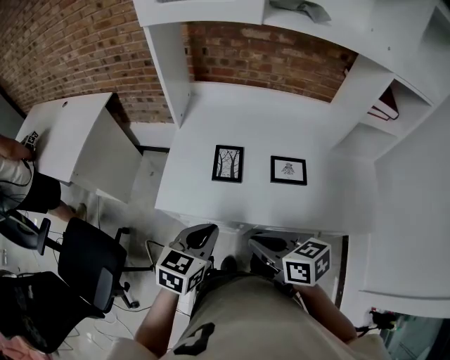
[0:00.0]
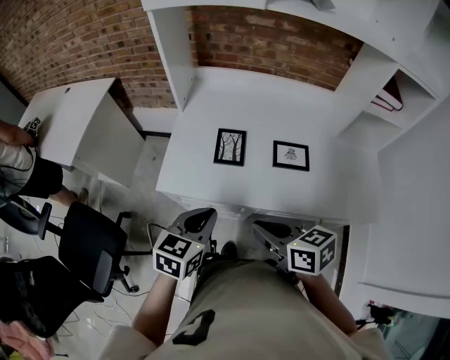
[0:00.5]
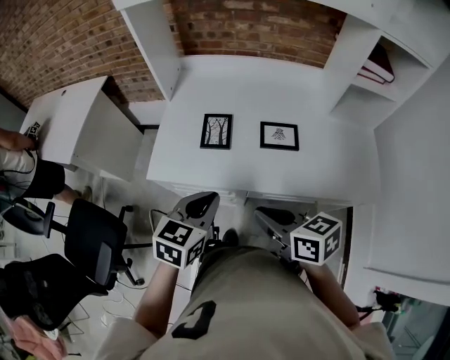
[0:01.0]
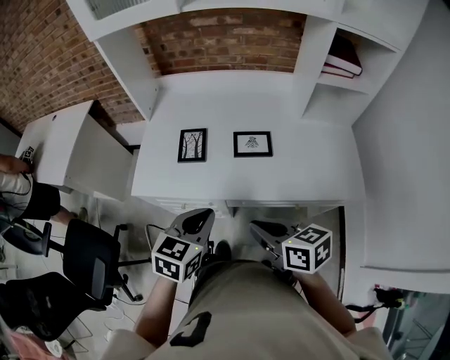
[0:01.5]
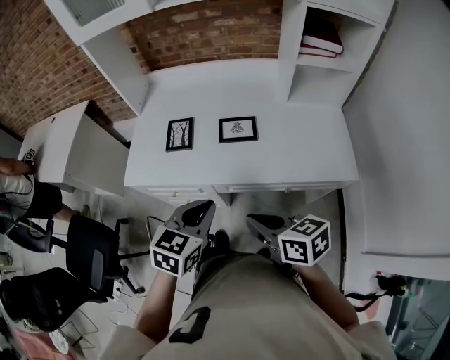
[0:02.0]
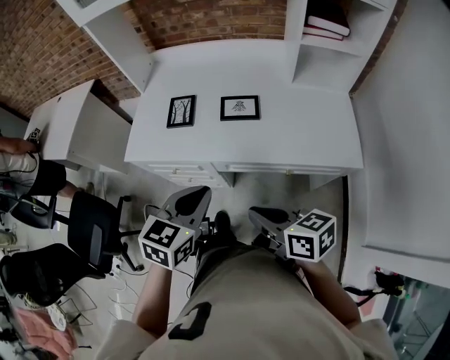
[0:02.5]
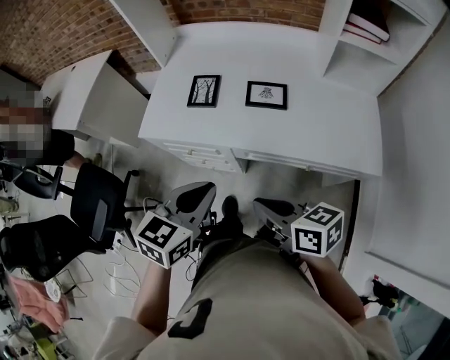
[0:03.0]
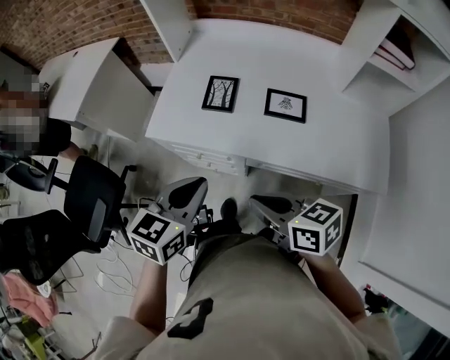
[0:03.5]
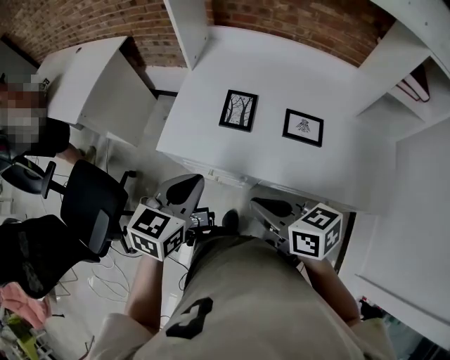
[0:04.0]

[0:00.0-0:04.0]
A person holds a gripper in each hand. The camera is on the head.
0:00.0 to 0:02.0: Both grippers travel together to the right and backward, roughly 20 cm.
0:02.0 to 0:04.0: The grippers both shift to the left and forward by approximately 20 cm.

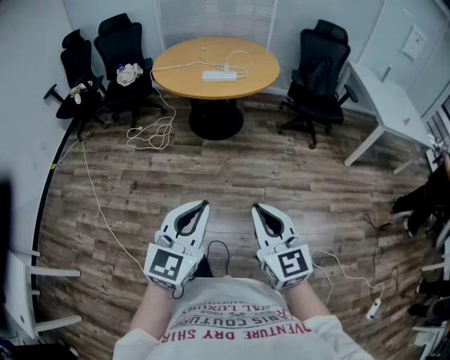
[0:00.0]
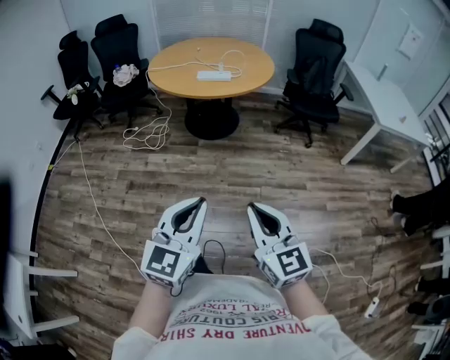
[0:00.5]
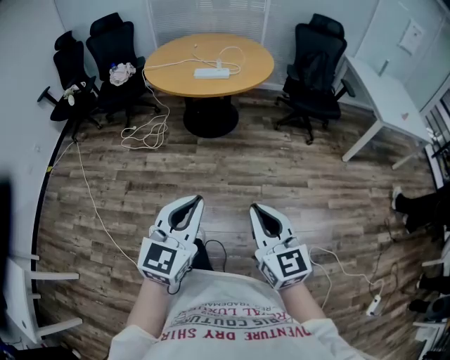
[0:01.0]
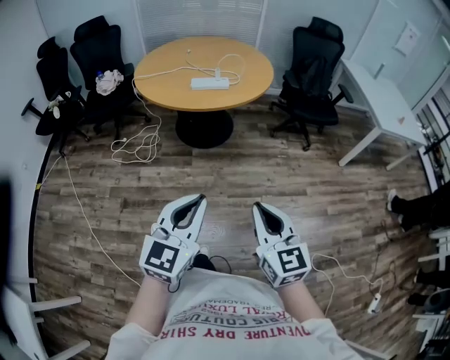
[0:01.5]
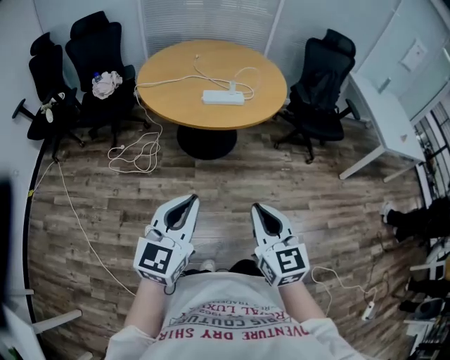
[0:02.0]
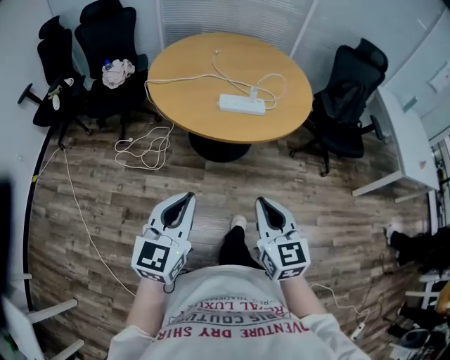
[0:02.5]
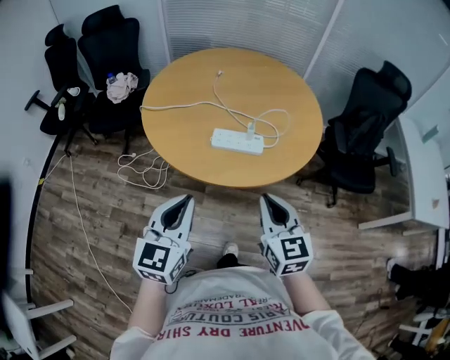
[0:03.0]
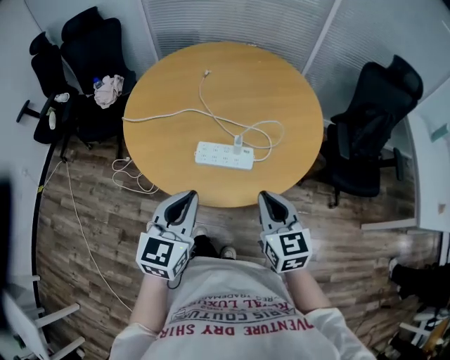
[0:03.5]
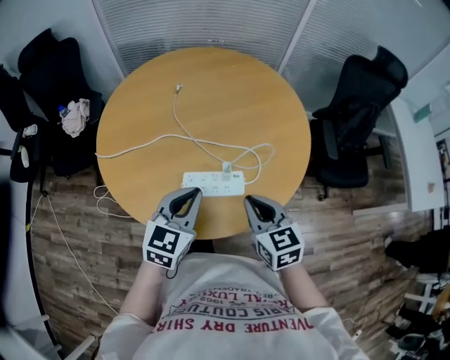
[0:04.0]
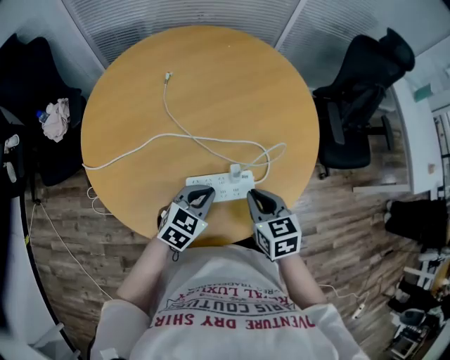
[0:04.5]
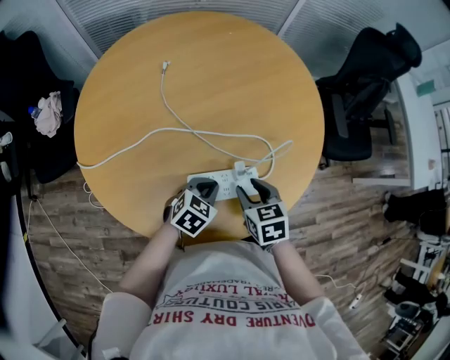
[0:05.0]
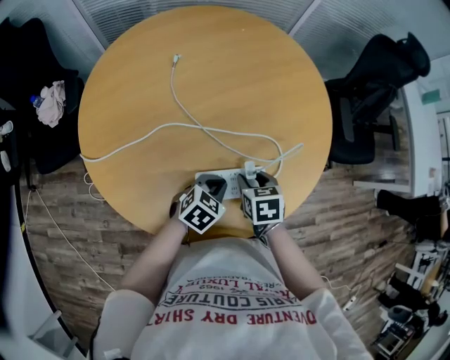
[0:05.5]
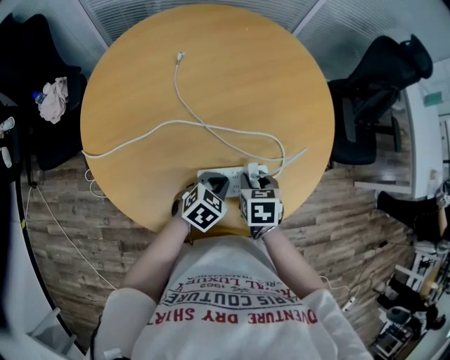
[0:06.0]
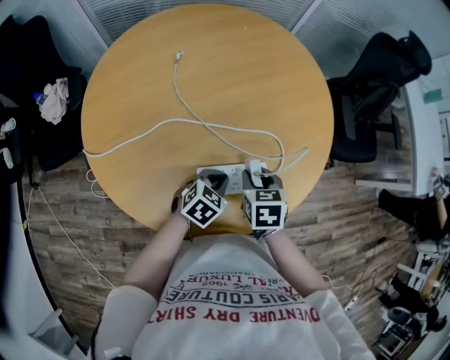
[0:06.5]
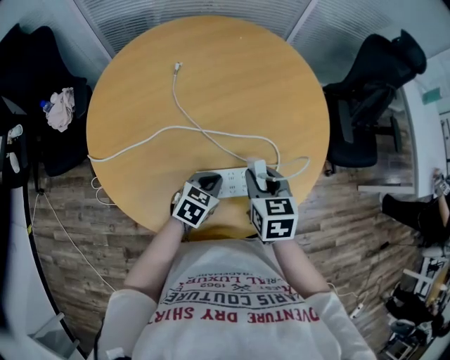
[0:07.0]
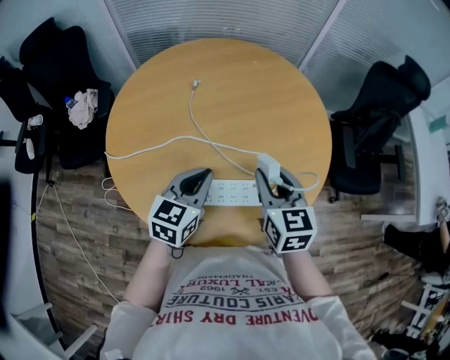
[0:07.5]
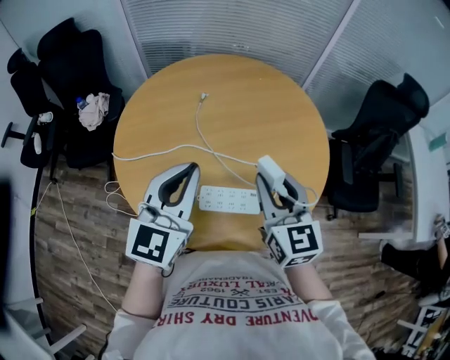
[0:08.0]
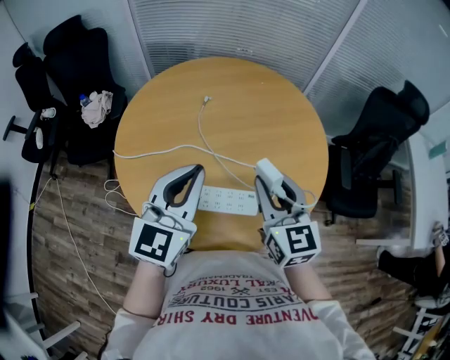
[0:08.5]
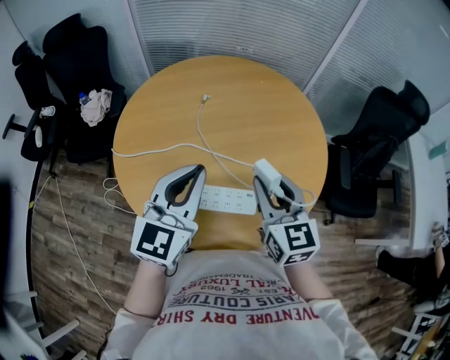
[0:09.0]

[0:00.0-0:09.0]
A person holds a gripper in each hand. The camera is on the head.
0:00.0 to 0:02.0: Both grippers travel together forward and to the left, roughly 30 cm.
0:02.0 to 0:04.5: Both grippers are carried forward, approximately 60 cm. The left gripper moves downward, roughly 25 cm, and angles its fingers downward, by about 30 degrees; the right gripper turns by about 30 degrees.
0:04.5 to 0:07.0: The left gripper shifts some 5 cm downward. The right gripper travels downward and back again, approximately 10 cm each way, and opens.
0:07.0 to 0:09.0: The right gripper travels upward by roughly 15 cm, and turns by approximately 30 degrees. Meanwhile the left gripper heads upward, covering some 35 cm, and tilts its fingers about 40 degrees upward.

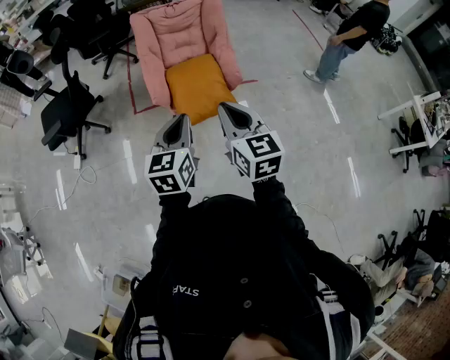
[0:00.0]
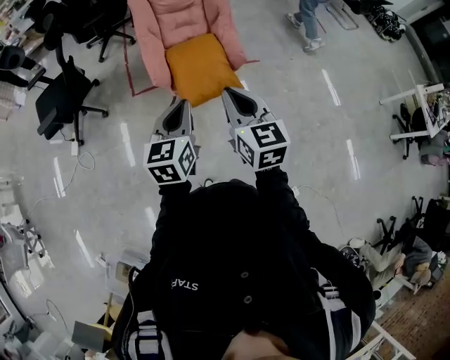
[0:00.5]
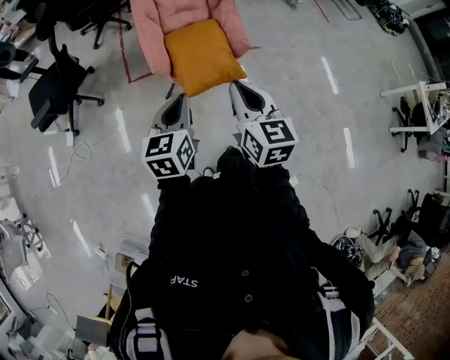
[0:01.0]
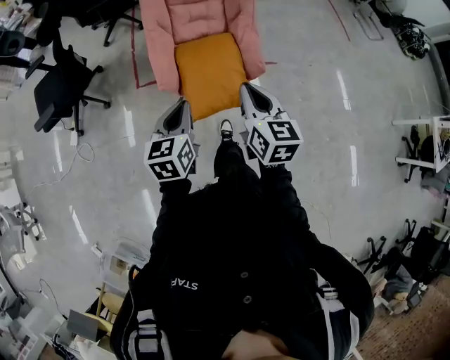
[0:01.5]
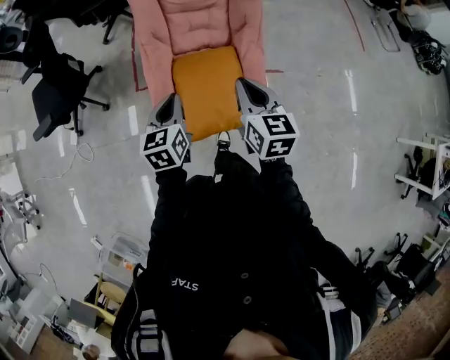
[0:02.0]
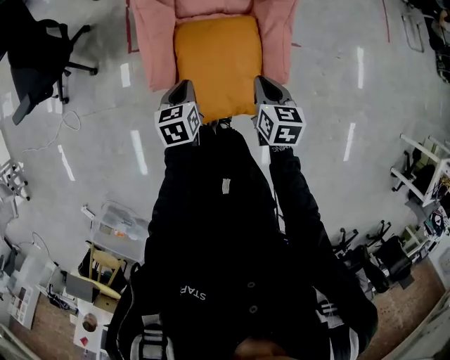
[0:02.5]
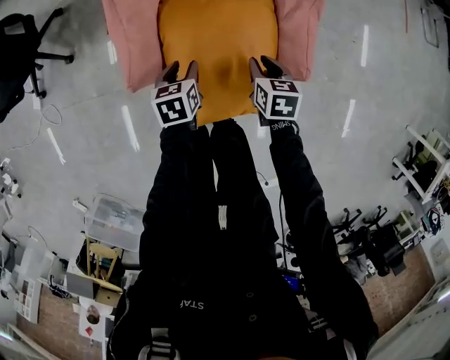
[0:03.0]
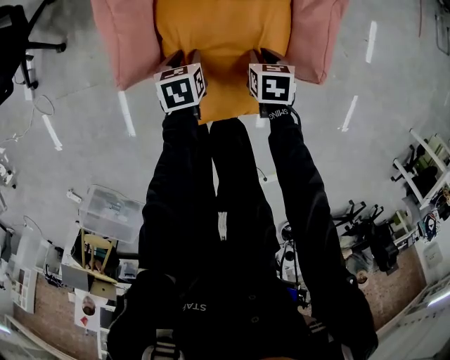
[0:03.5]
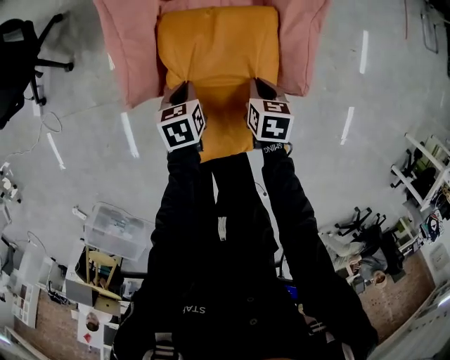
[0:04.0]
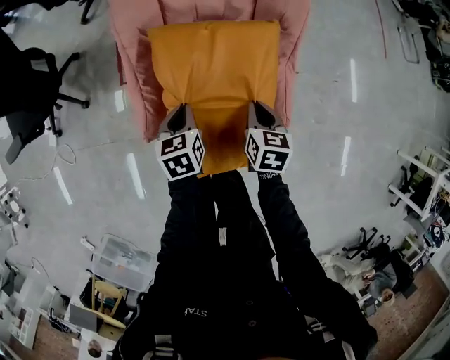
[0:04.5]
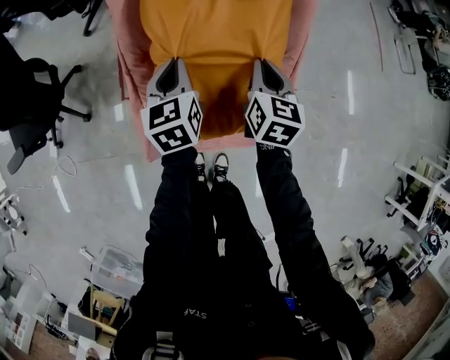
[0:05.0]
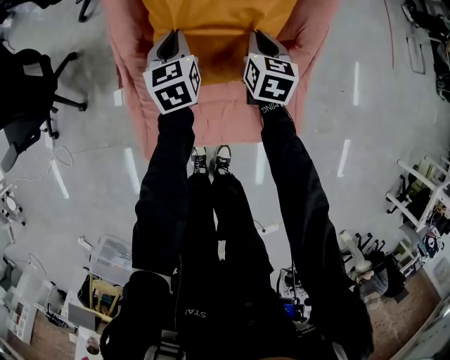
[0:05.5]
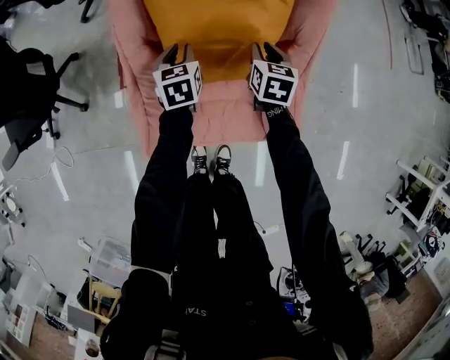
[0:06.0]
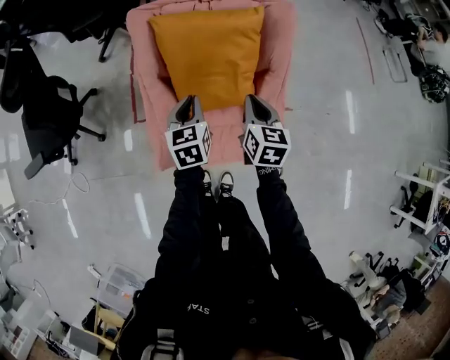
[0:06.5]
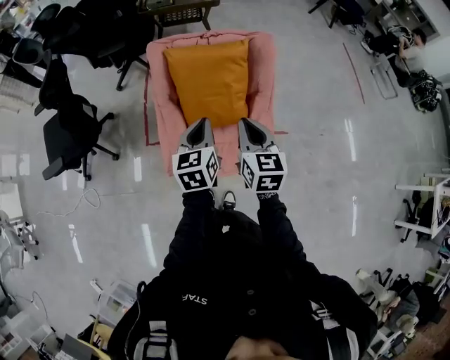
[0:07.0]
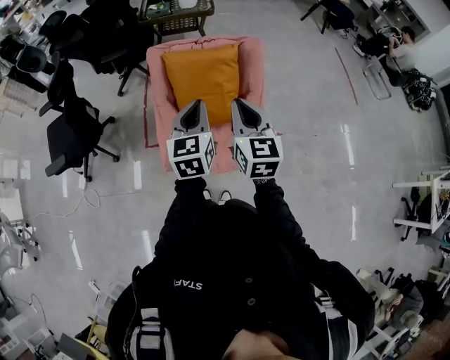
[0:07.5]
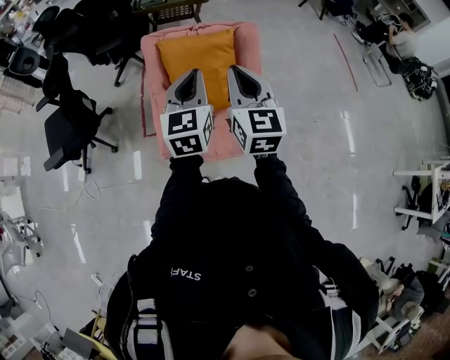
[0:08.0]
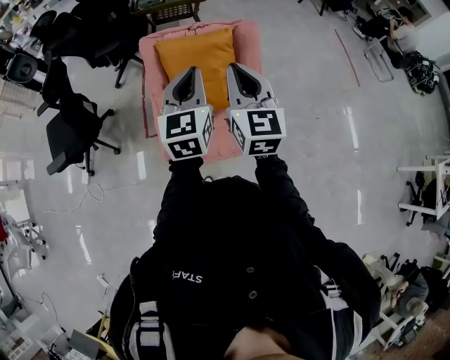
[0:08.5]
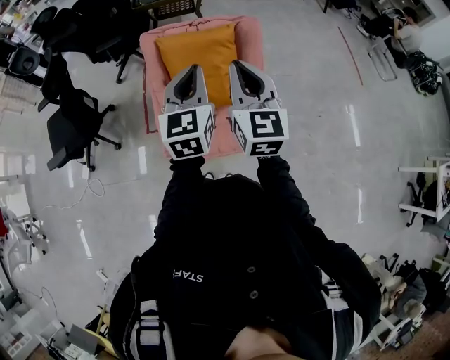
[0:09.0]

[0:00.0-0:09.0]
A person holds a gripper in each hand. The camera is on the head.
0:00.0 to 0:02.0: Both grippers move forward, some 40 cm.
0:02.0 to 0:04.5: The two grippers go roughly 35 cm downward and forward. The left gripper turns by approximately 20 degrees, and opens, then closes again. Meanwhile the right gripper swivels roughly 30 degrees, and opens, then closes again.
0:04.5 to 0:07.0: The left gripper swings up and down, roughly 35 cm each way, with 2 reversals, and turns by some 30 degrees; the right gripper goes up and down, some 35 cm each way, reversing 2 times, rotates roughly 30 degrees, and opens, then closes again.
0:07.0 to 0:09.0: Both grippers move upward, some 15 cm. The right gripper rotates approximately 20 degrees, while the left gripper turns by some 20 degrees.

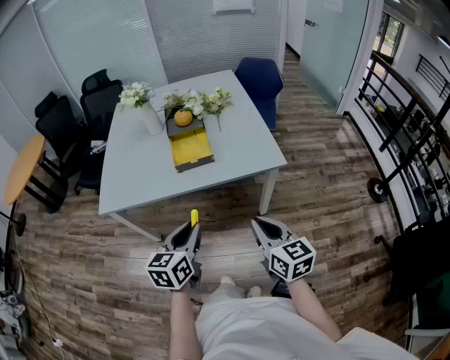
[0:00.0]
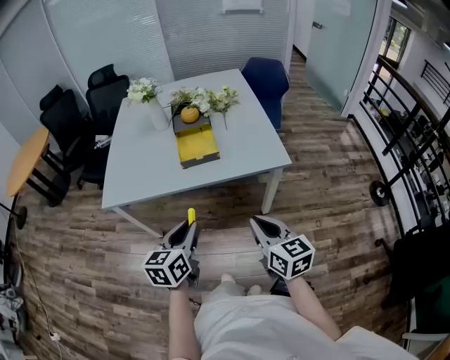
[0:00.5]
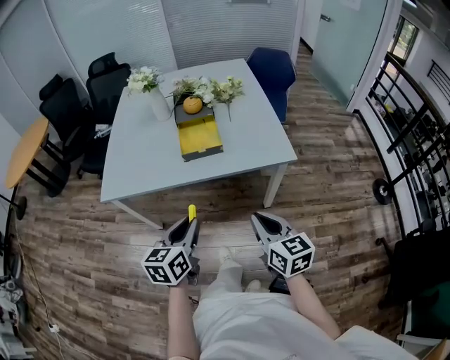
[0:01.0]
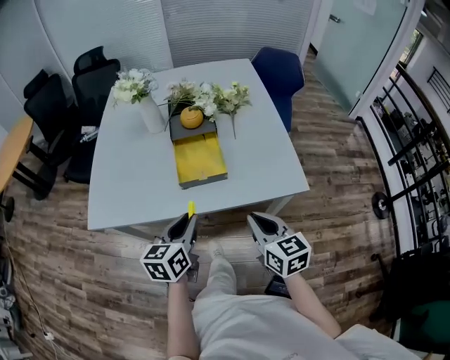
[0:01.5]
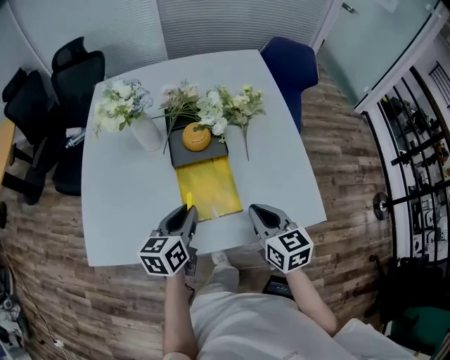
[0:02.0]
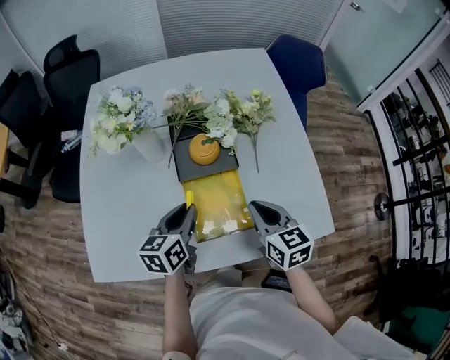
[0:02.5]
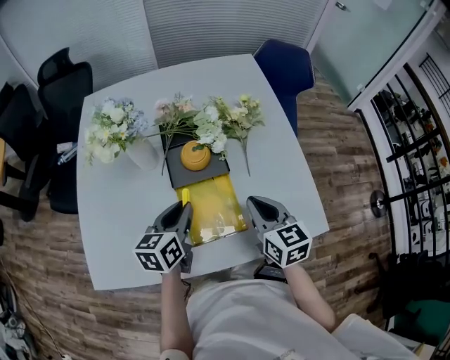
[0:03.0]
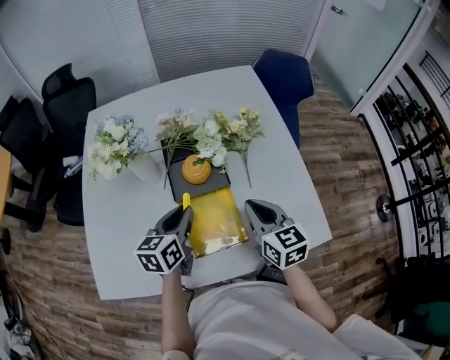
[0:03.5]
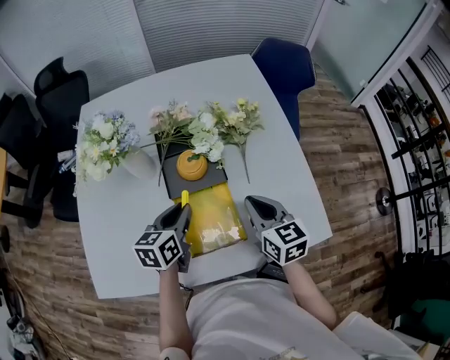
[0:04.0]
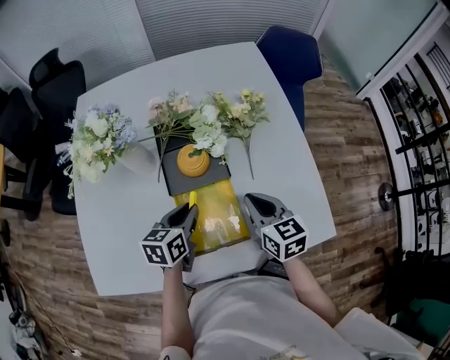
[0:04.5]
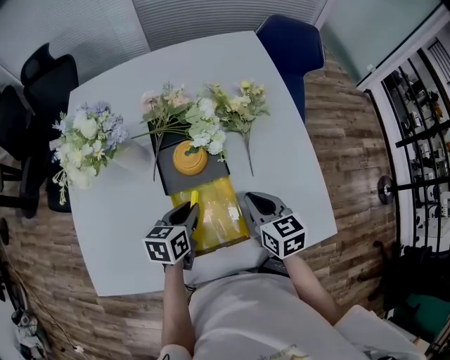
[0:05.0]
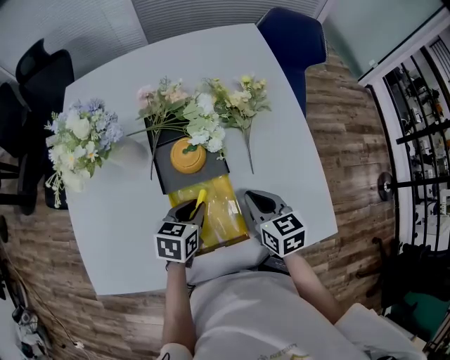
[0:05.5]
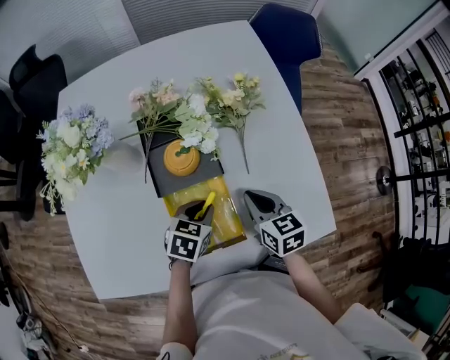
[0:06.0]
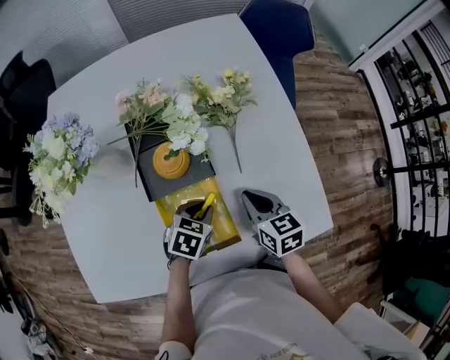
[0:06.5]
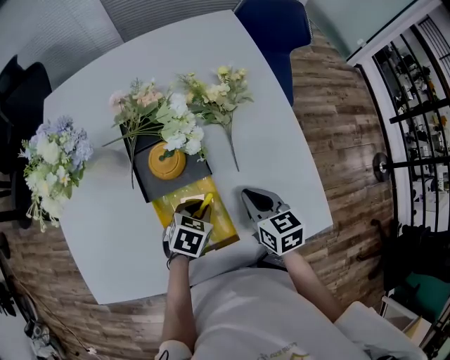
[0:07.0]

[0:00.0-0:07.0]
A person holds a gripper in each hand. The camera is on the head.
0:00.0 to 0:02.0: The two grippers travel together, forward, about 40 cm.
0:02.0 to 0:03.5: Both grippers travel together forward, roughly 10 cm.
0:03.5 to 0:05.0: Both grippers travel together downward, roughly 10 cm.
0:05.0 to 0:07.0: The right gripper moves some 5 cm, while the left gripper heads to the right and downward, covering about 10 cm, and rotates some 40 degrees.
